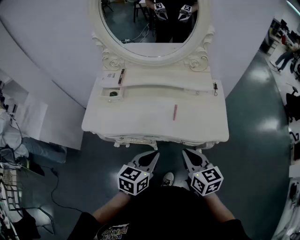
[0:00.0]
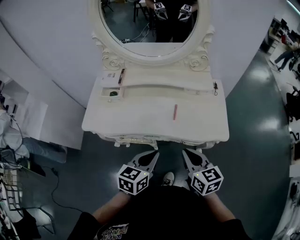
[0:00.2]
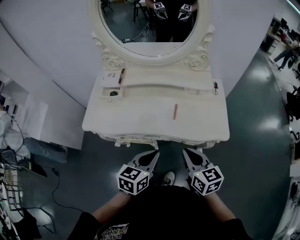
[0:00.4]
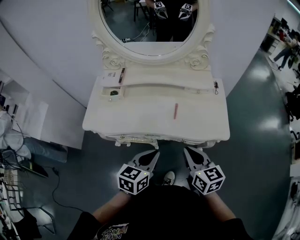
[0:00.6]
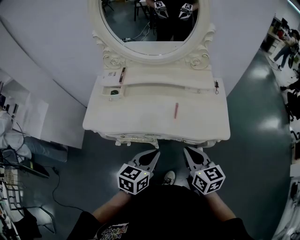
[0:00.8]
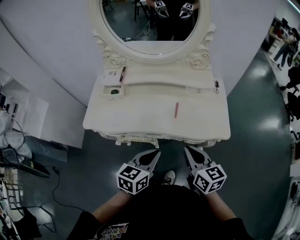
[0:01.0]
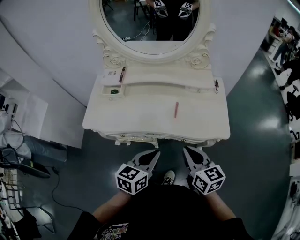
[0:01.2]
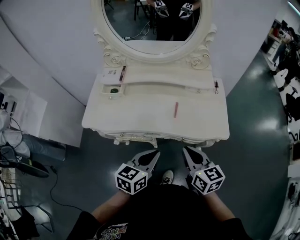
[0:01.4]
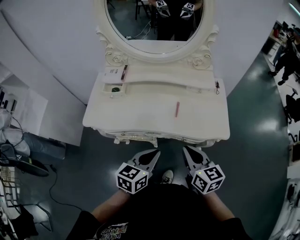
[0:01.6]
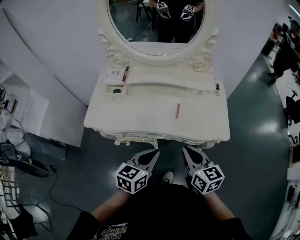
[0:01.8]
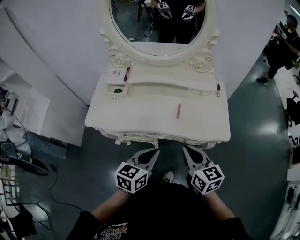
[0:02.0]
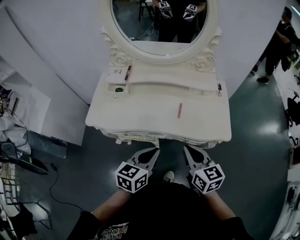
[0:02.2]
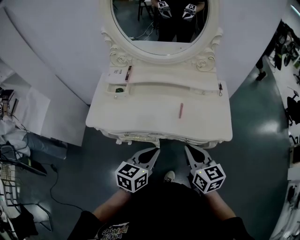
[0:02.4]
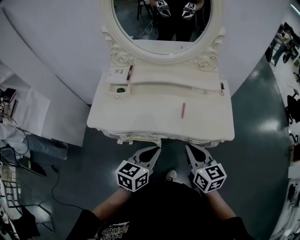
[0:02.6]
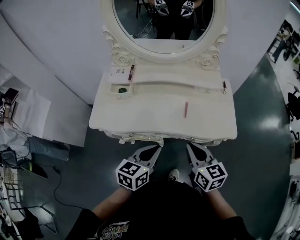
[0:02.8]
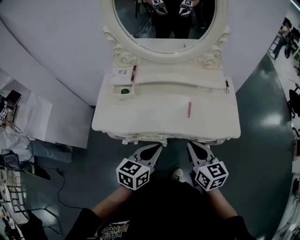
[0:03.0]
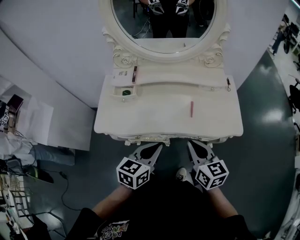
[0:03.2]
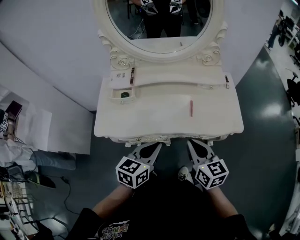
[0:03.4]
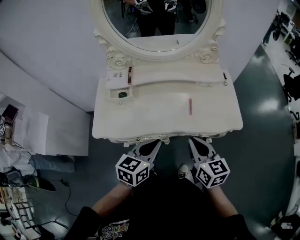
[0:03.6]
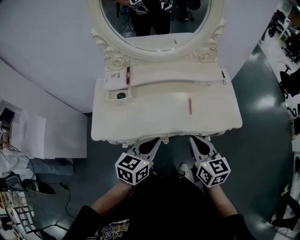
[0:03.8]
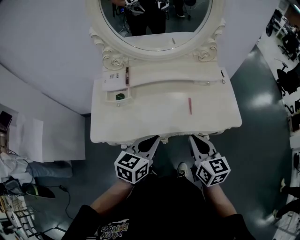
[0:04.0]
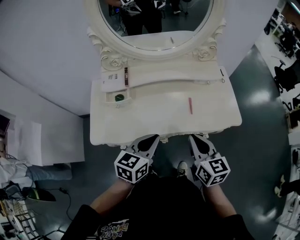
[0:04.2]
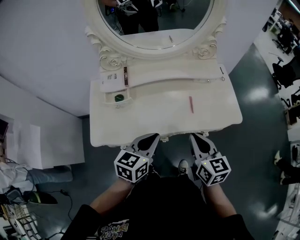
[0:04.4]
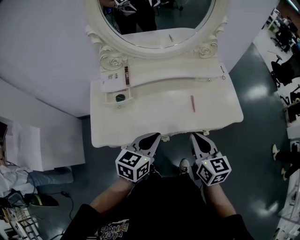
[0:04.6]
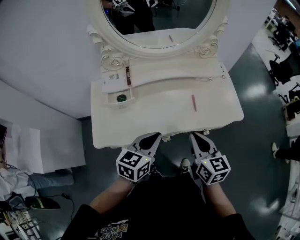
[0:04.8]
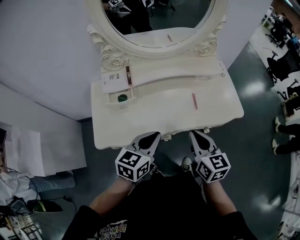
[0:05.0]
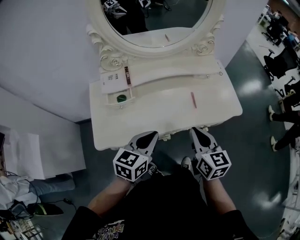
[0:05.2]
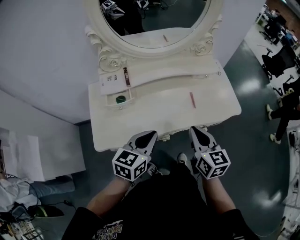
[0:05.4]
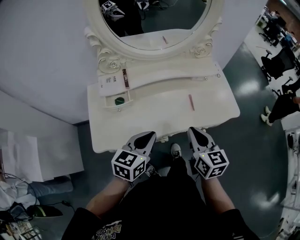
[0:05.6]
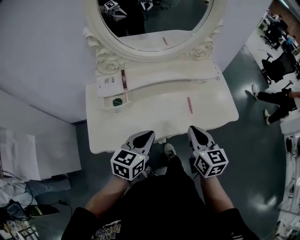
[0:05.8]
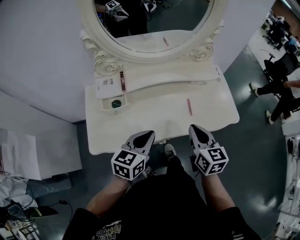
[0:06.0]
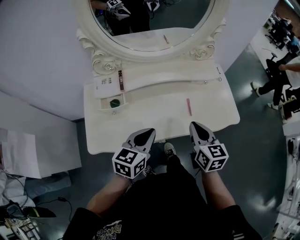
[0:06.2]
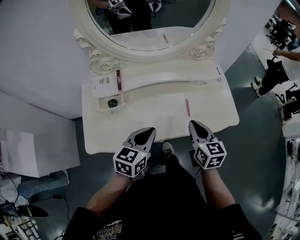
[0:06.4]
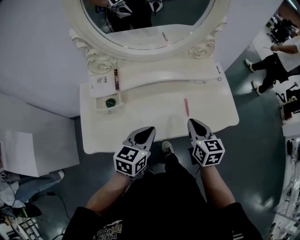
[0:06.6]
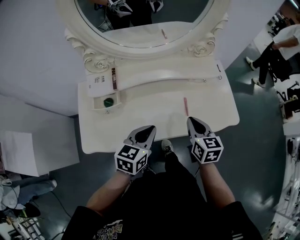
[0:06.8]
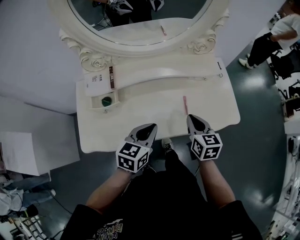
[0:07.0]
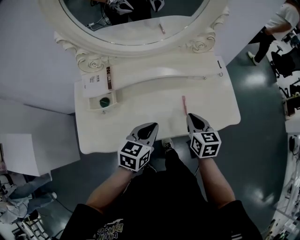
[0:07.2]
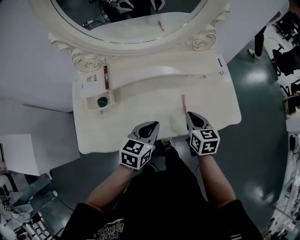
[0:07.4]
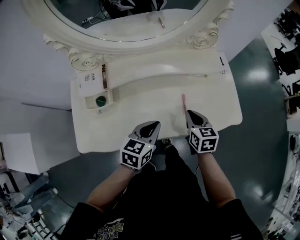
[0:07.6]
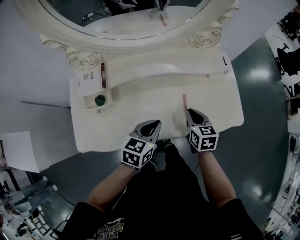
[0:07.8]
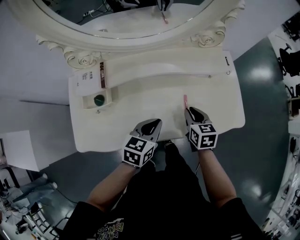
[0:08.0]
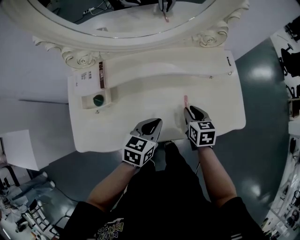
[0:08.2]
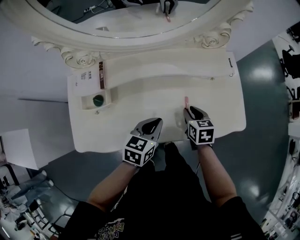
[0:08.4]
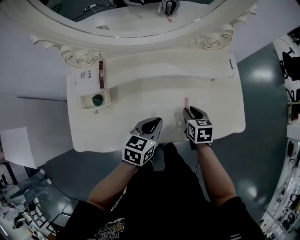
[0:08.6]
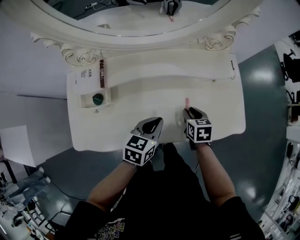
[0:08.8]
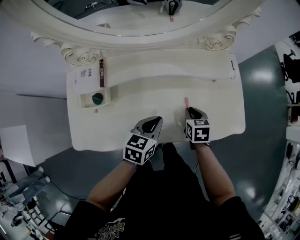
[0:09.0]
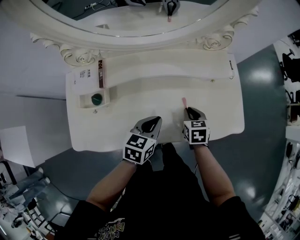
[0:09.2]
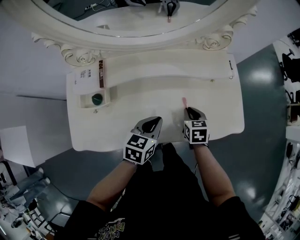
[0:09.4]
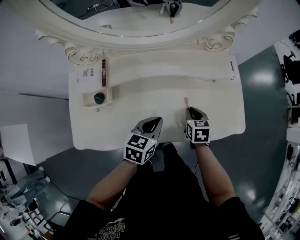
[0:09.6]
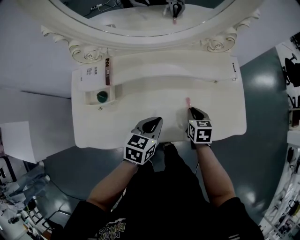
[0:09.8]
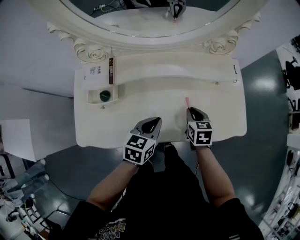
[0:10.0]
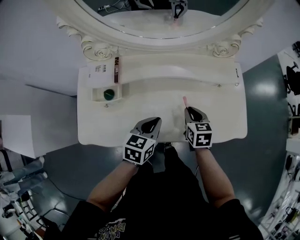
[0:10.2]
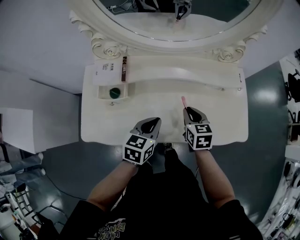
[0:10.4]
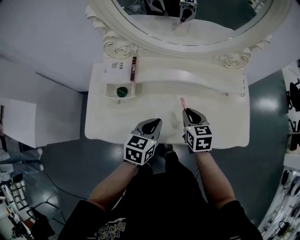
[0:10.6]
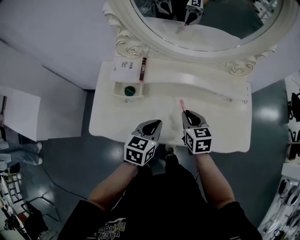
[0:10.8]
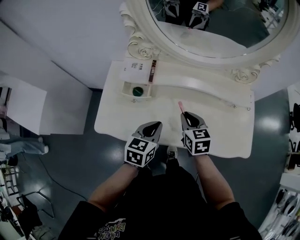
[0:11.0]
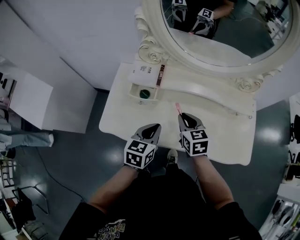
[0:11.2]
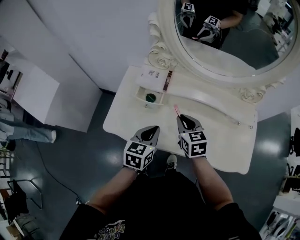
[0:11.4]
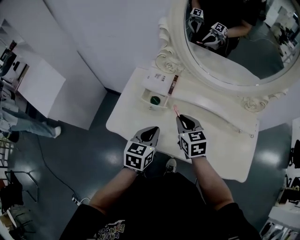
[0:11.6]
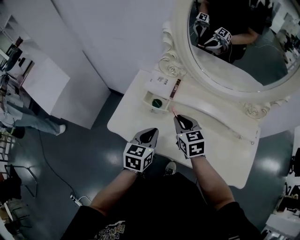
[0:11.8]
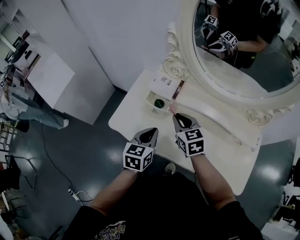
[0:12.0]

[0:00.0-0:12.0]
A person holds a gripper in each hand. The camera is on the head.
0:00.0 to 0:01.6: The grippers make only small movements.
0:01.6 to 0:03.0: Both grippers move to the left, approximately 5 cm.
0:03.0 to 0:04.4: The right gripper moves to the left, about 5 cm. Meanwhile the left gripper is displaced to the left and forward by some 10 cm.
0:04.4 to 0:06.0: The right gripper changes place by some 5 cm.
0:06.0 to 0:07.6: The left gripper heads forward, downward and to the right, covering some 15 cm; the right gripper heads downward and forward, covering approximately 20 cm.
0:07.6 to 0:09.0: The left gripper shifts by about 5 cm. The right gripper is displaced downward by about 10 cm.
0:09.0 to 0:10.4: The right gripper moves to the left and upward, some 10 cm. The left gripper travels to the left by roughly 5 cm.
0:10.4 to 0:12.0: The right gripper shifts by about 25 cm, and swivels some 40 degrees. The left gripper shifts by some 15 cm, and turns by about 30 degrees.

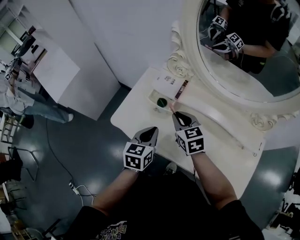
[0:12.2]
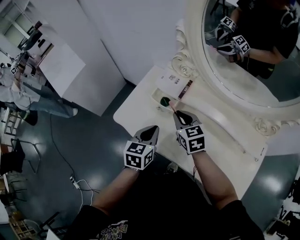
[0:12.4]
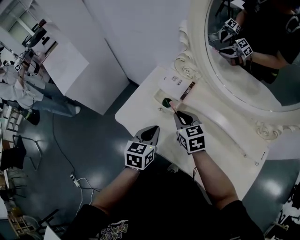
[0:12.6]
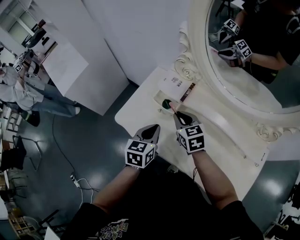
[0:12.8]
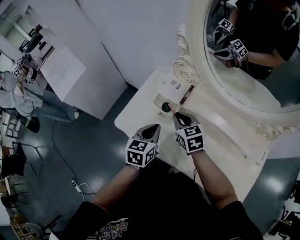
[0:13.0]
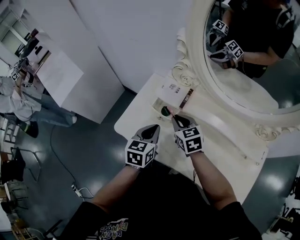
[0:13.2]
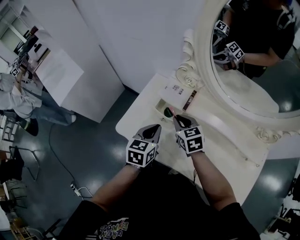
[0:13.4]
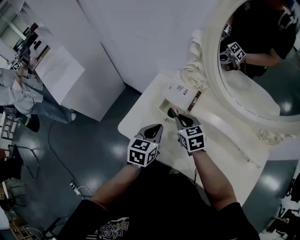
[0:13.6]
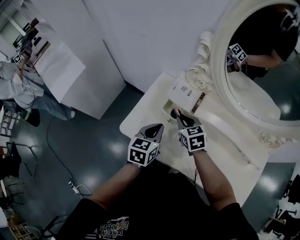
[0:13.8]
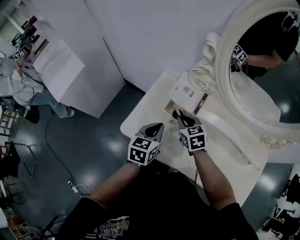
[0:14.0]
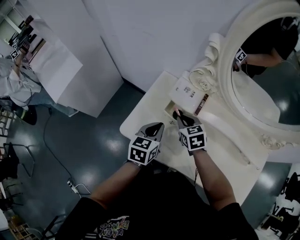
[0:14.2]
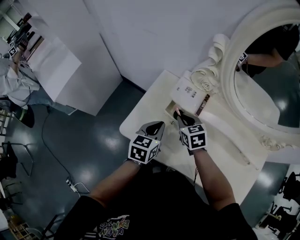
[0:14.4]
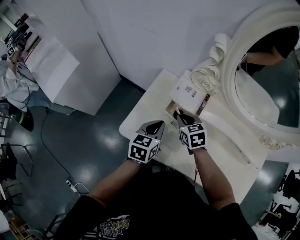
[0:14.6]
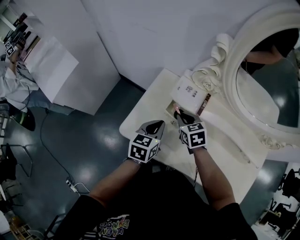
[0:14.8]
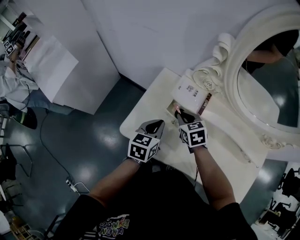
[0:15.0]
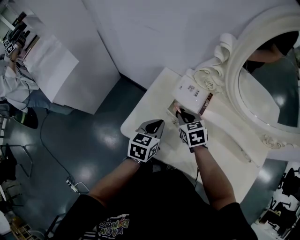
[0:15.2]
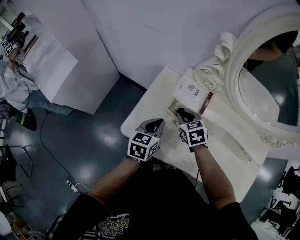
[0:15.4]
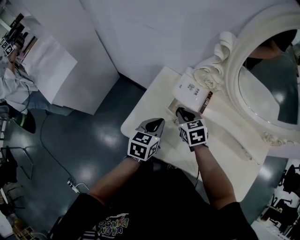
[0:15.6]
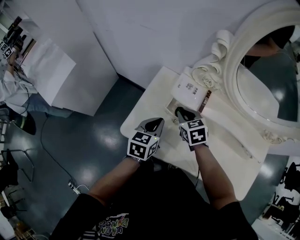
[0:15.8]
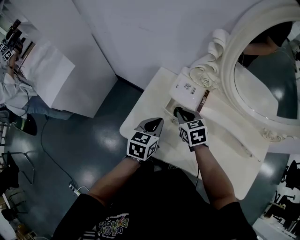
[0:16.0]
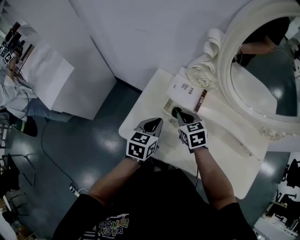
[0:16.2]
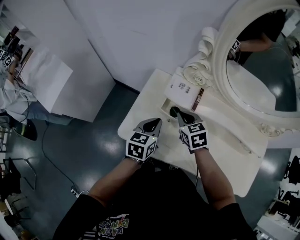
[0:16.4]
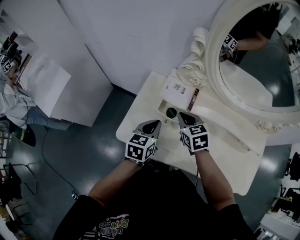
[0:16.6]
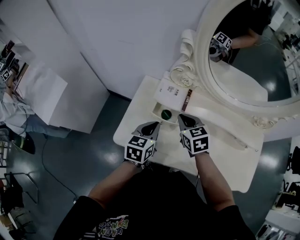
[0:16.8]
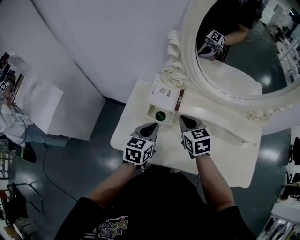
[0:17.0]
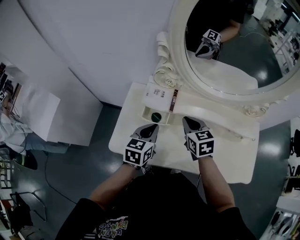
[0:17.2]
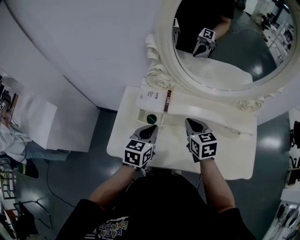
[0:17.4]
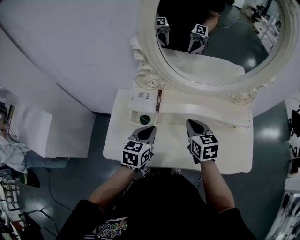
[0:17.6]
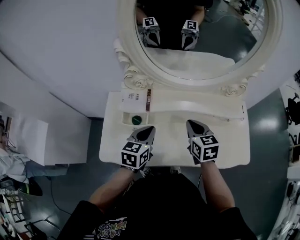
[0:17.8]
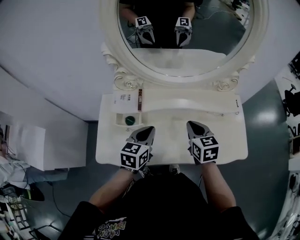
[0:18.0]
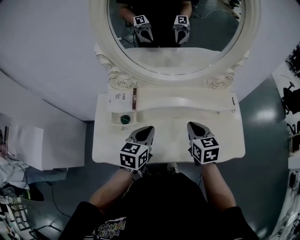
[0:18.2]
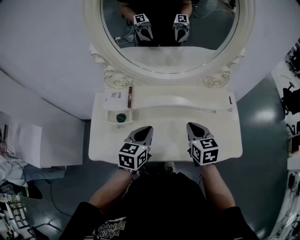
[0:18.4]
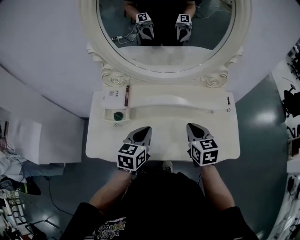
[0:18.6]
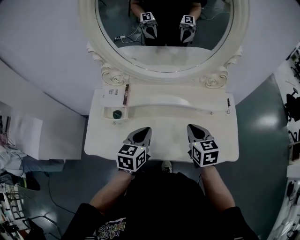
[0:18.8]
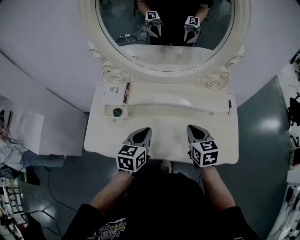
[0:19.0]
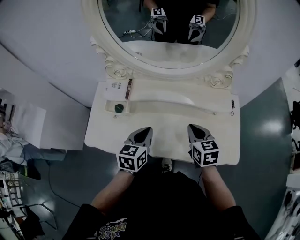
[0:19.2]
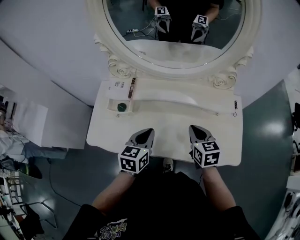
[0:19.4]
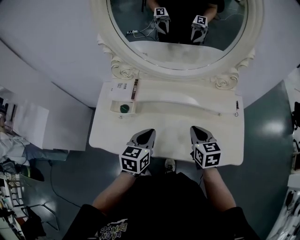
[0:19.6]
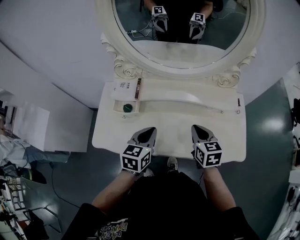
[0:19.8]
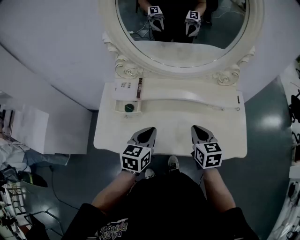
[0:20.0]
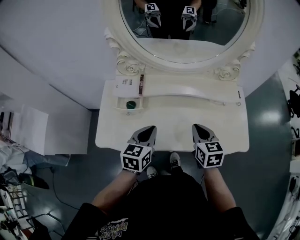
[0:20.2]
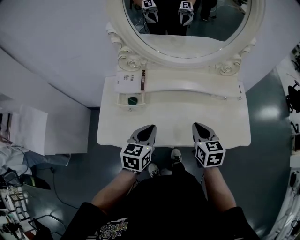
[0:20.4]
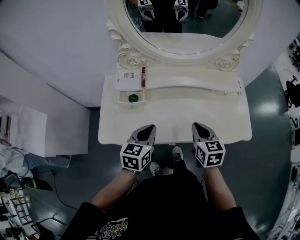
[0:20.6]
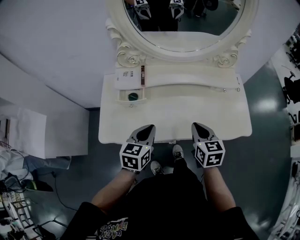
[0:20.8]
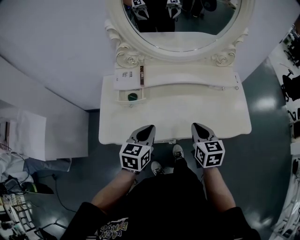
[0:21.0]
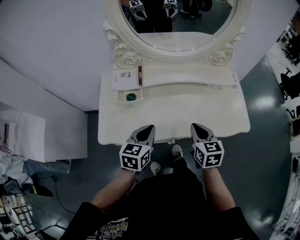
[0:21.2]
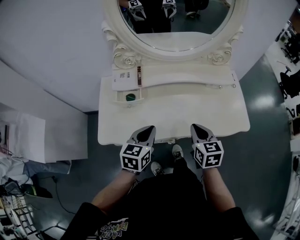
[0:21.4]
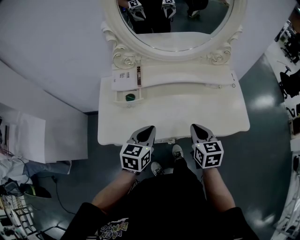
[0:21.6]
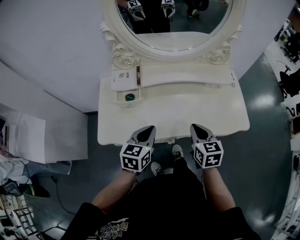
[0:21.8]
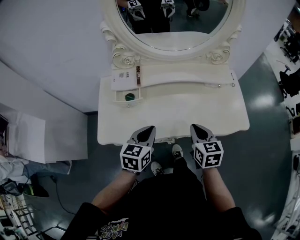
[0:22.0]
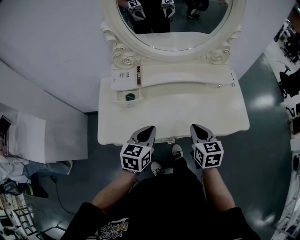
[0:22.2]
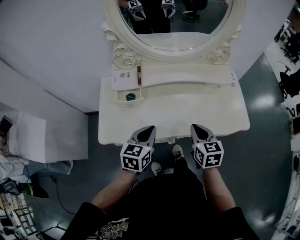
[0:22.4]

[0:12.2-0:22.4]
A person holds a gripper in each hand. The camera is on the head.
0:12.2 to 0:13.6: The grippers both shift forward by some 5 cm.
0:13.6 to 0:15.2: The right gripper ends up some 5 cm from where it was. Meanwhile the left gripper moves to the left, some 5 cm.
0:15.2 to 0:16.6: The right gripper moves upward, approximately 5 cm.
0:16.6 to 0:18.0: The right gripper shifts by roughly 30 cm, and changes its angle by some 30 degrees. Meanwhile the left gripper moves some 20 cm, and rotates about 20 degrees.
0:18.0 to 0:19.4: Both grippers move to the right, approximately 10 cm.
0:19.4 to 0:21.0: The left gripper is displaced to the left and backward by roughly 15 cm; the right gripper is displaced backward and to the left by approximately 15 cm.
0:21.0 to 0:22.4: The grippers move only a little.

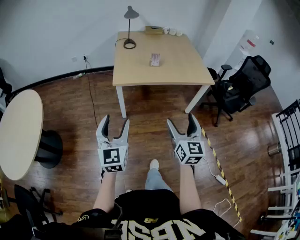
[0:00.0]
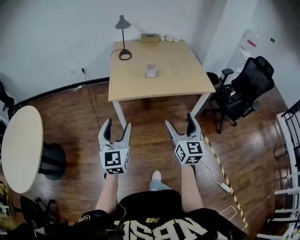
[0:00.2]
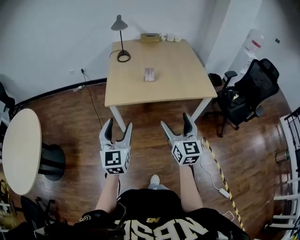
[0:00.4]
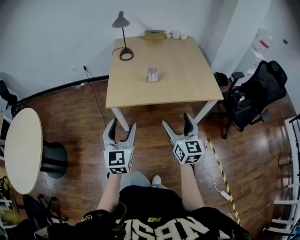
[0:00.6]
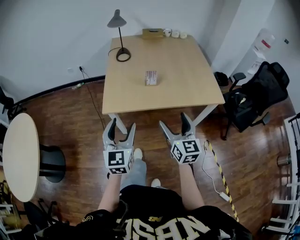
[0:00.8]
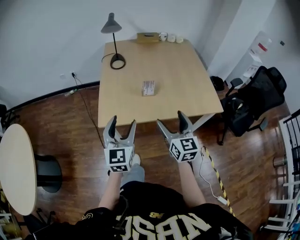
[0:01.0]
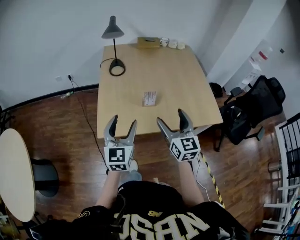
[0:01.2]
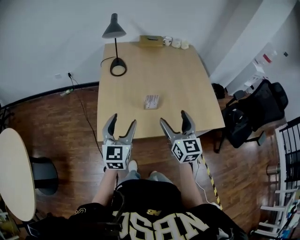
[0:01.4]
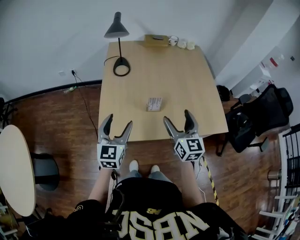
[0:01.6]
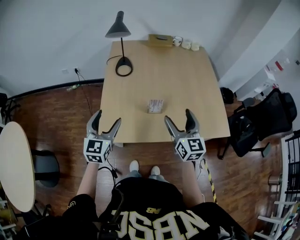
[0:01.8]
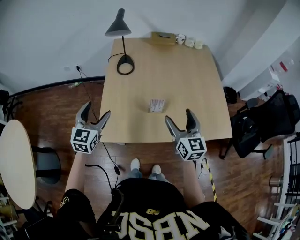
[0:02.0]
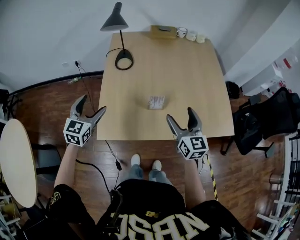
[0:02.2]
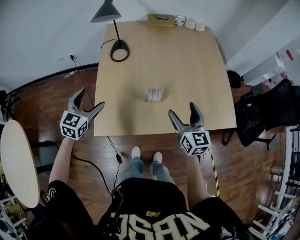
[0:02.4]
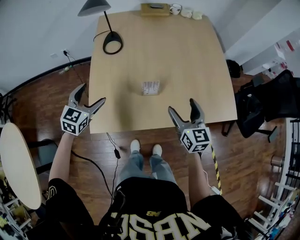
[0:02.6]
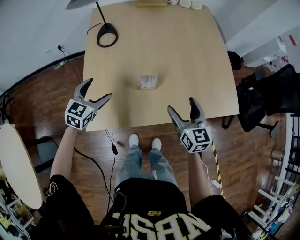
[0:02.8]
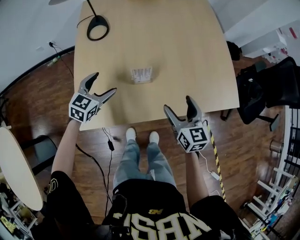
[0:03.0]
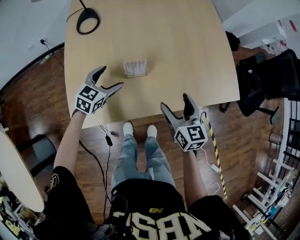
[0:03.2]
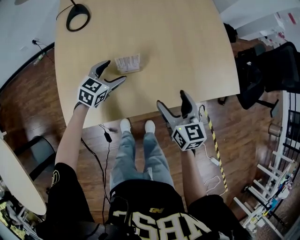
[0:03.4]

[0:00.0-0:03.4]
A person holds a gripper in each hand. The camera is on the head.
0:00.0 to 0:01.6: The pair of grippers is taken forward, about 60 cm.
0:01.6 to 0:03.4: The right gripper heads downward, covering approximately 20 cm, and changes its angle by some 20 degrees. The left gripper goes about 35 cm downward and forward, and changes its angle by some 40 degrees.